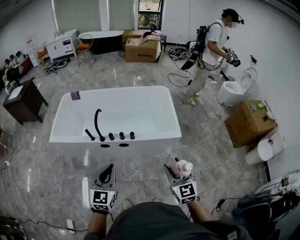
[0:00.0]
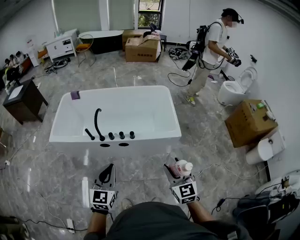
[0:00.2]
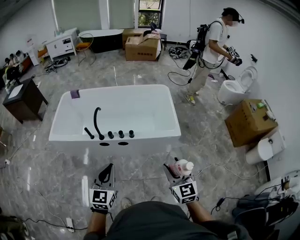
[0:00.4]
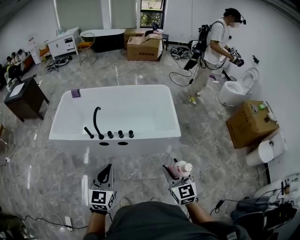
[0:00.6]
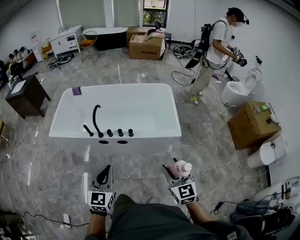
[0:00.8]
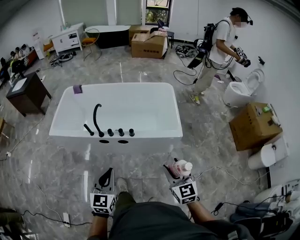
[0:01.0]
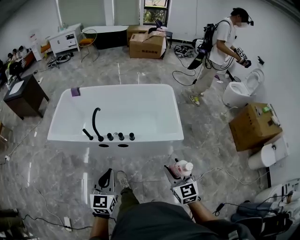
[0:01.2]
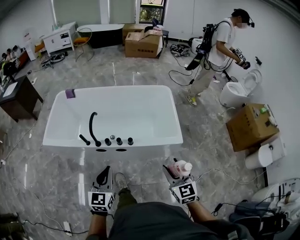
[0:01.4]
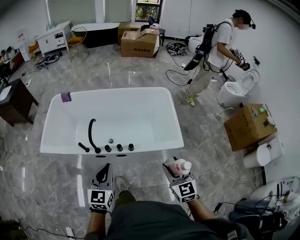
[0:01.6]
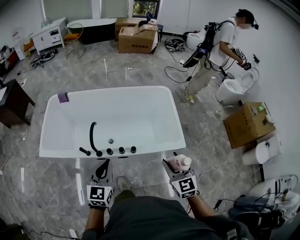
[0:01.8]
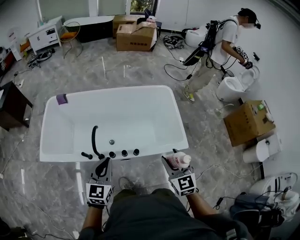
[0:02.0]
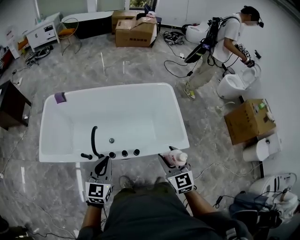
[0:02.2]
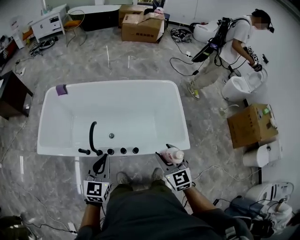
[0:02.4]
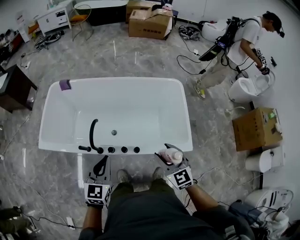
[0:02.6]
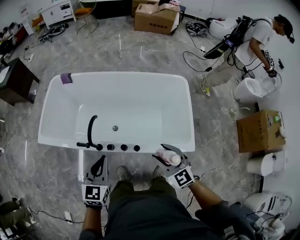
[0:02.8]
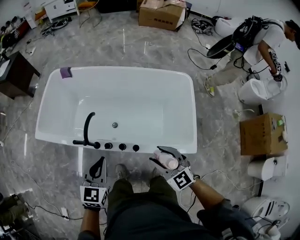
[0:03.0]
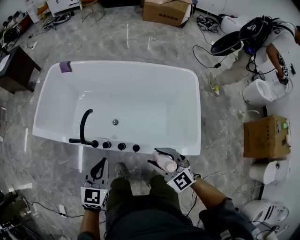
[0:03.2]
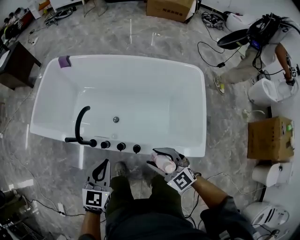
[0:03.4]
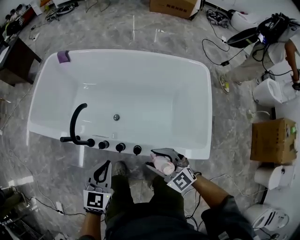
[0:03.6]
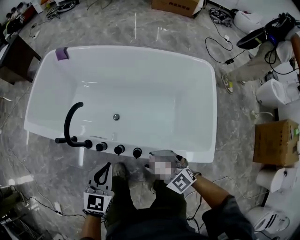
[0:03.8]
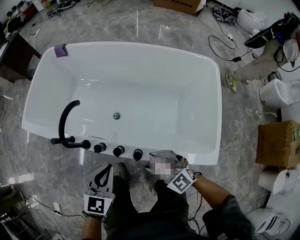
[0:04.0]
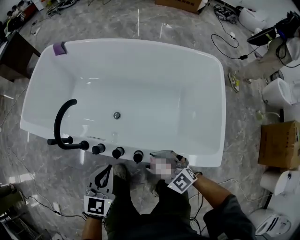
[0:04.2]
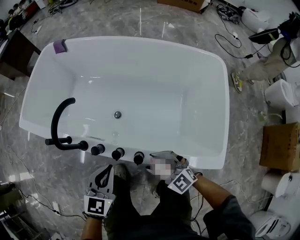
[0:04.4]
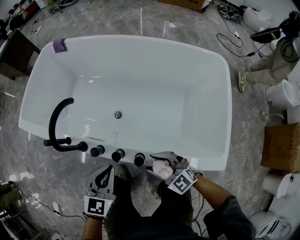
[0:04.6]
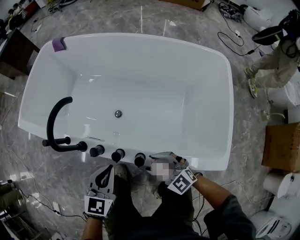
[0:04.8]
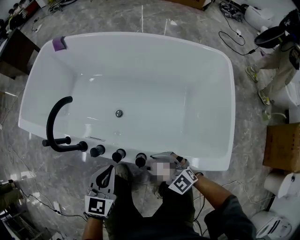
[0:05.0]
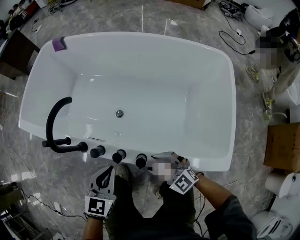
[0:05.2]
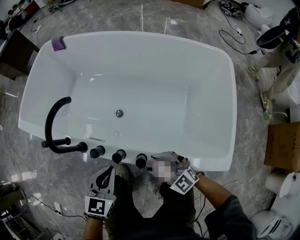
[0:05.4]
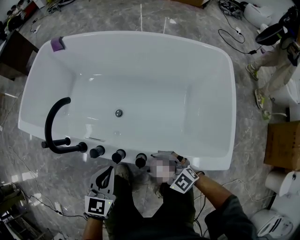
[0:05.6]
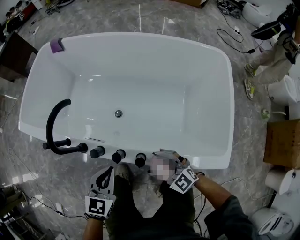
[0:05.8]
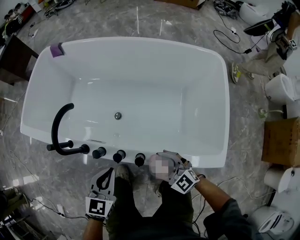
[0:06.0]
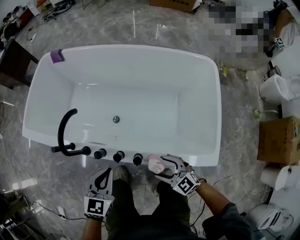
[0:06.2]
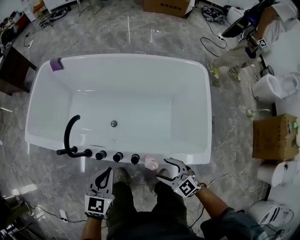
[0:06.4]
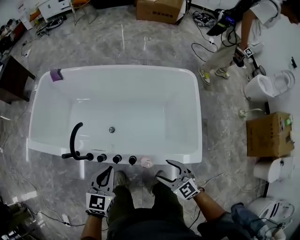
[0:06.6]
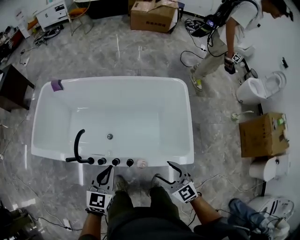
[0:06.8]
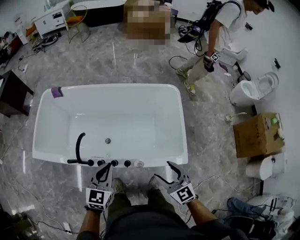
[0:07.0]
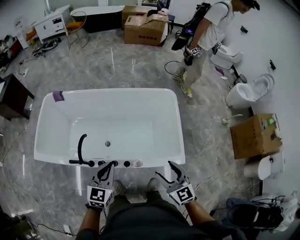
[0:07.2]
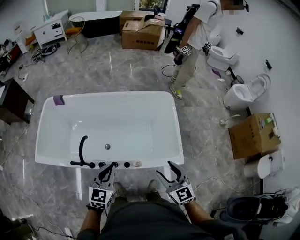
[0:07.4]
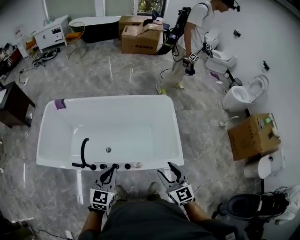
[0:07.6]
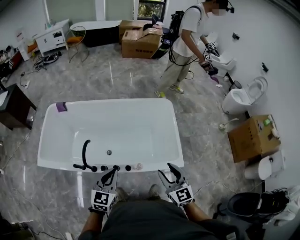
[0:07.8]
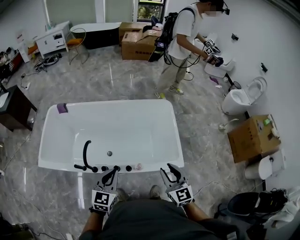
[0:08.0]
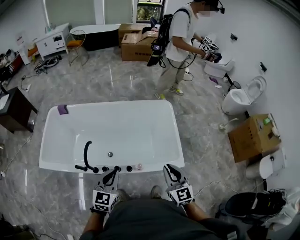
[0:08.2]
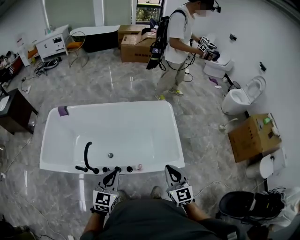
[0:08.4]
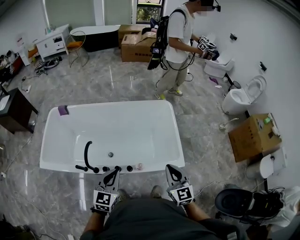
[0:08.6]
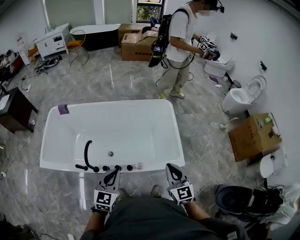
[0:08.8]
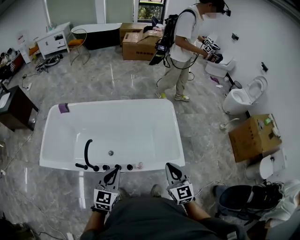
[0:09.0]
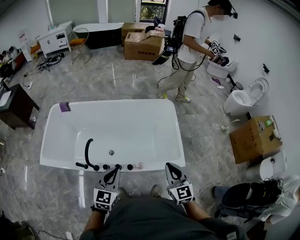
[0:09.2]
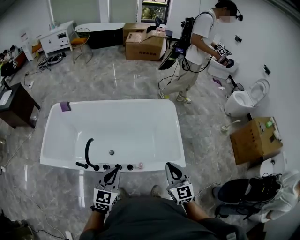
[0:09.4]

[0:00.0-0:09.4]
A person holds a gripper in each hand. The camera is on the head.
0:00.0 to 0:01.6: The grippers both shift forward by some 20 cm.
0:01.6 to 0:03.2: The right gripper ends up some 25 cm from where it was, and changes its angle by roughly 40 degrees. The left gripper shifts by some 20 cm.
0:03.2 to 0:04.8: The grippers both shift downward by approximately 25 cm.
0:04.8 to 0:06.2: The right gripper ends up about 5 cm from where it was; the left gripper is displaced upward by roughly 5 cm.
0:06.2 to 0:07.8: Both grippers travel together upward, approximately 35 cm. The right gripper turns by roughly 50 degrees, and closes up.
0:07.8 to 0:09.4: The right gripper closes.

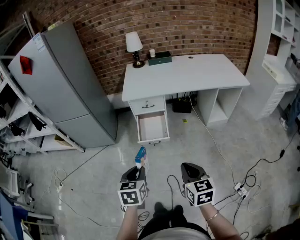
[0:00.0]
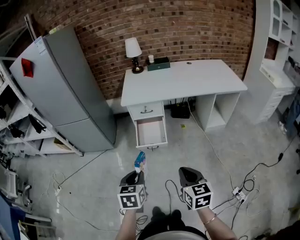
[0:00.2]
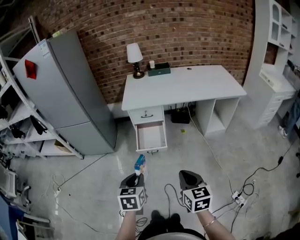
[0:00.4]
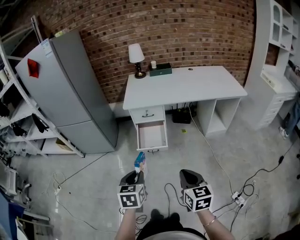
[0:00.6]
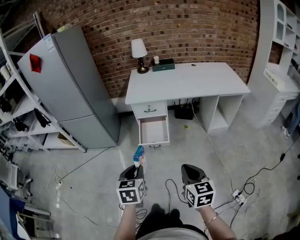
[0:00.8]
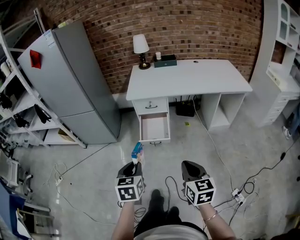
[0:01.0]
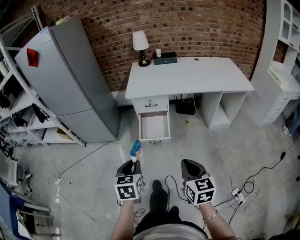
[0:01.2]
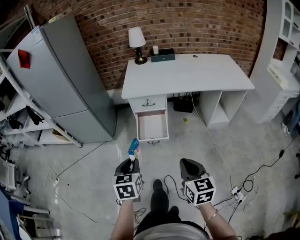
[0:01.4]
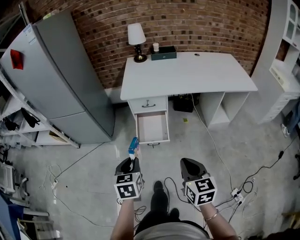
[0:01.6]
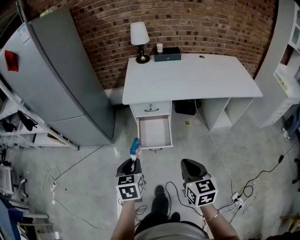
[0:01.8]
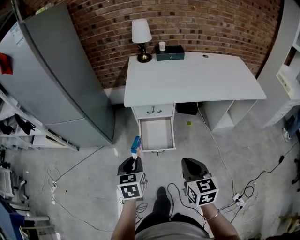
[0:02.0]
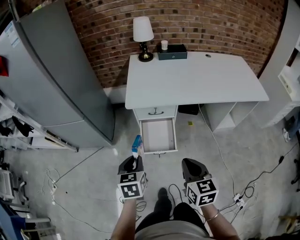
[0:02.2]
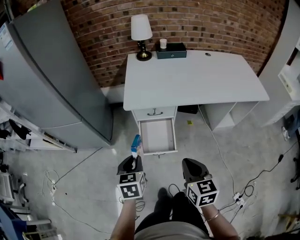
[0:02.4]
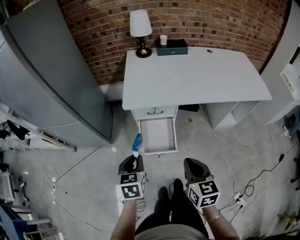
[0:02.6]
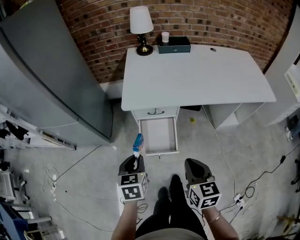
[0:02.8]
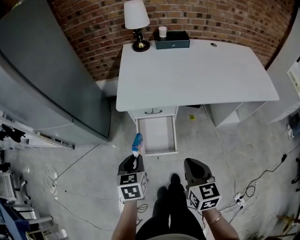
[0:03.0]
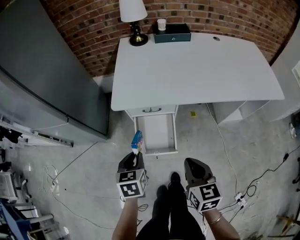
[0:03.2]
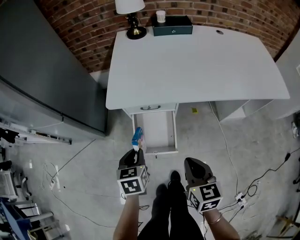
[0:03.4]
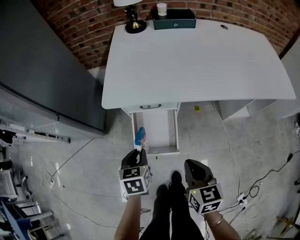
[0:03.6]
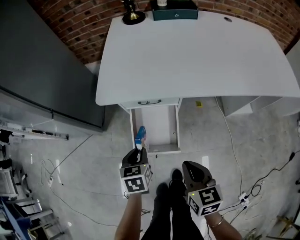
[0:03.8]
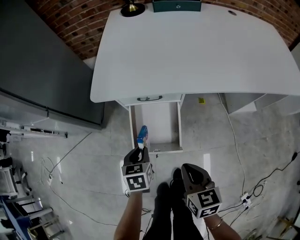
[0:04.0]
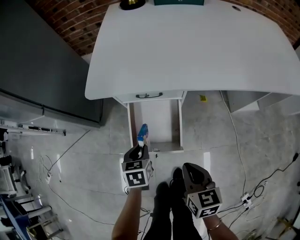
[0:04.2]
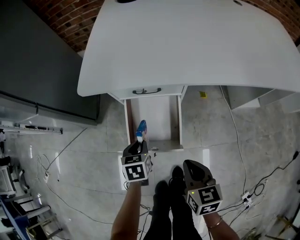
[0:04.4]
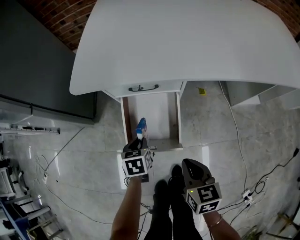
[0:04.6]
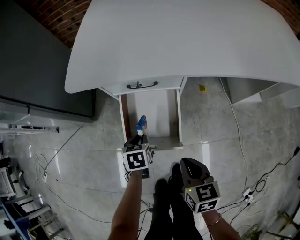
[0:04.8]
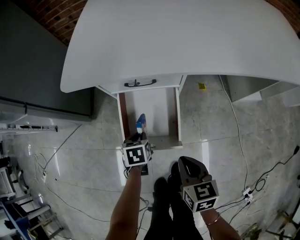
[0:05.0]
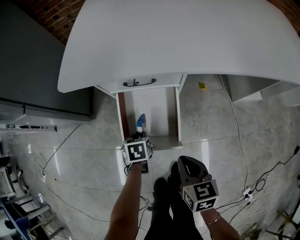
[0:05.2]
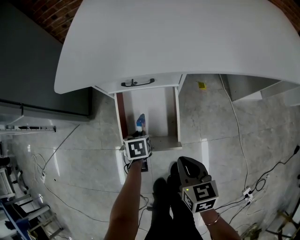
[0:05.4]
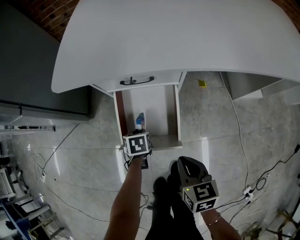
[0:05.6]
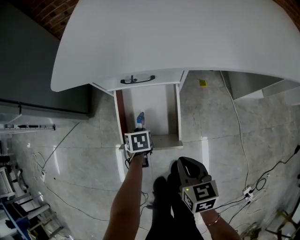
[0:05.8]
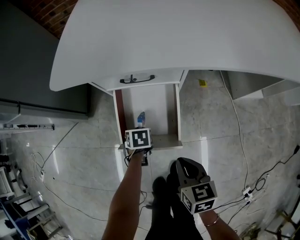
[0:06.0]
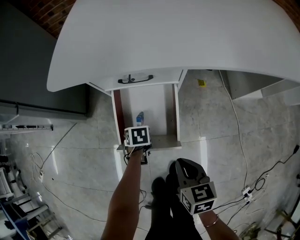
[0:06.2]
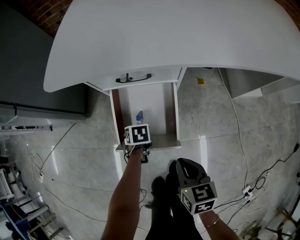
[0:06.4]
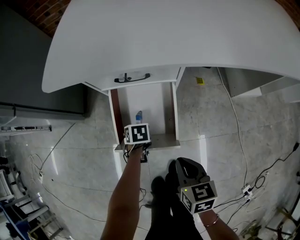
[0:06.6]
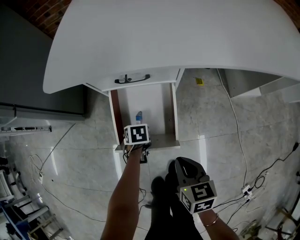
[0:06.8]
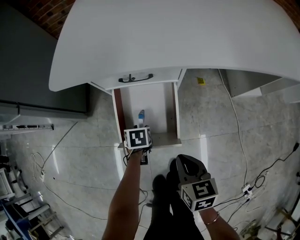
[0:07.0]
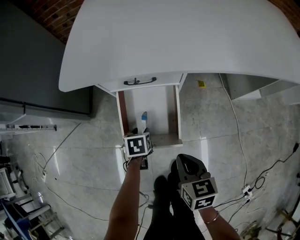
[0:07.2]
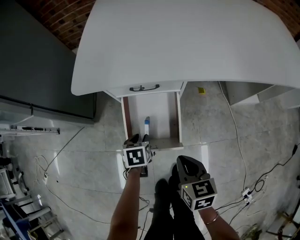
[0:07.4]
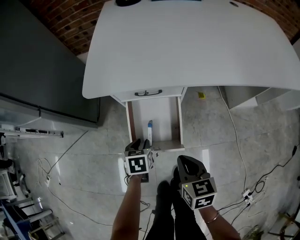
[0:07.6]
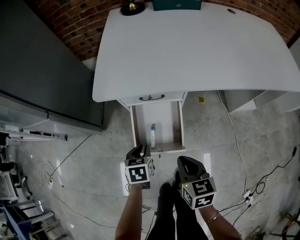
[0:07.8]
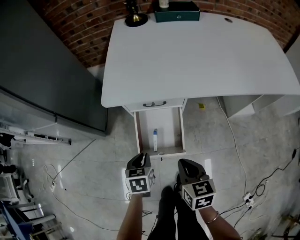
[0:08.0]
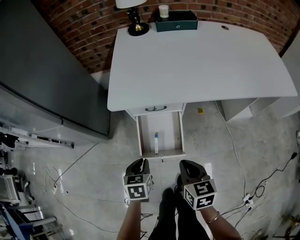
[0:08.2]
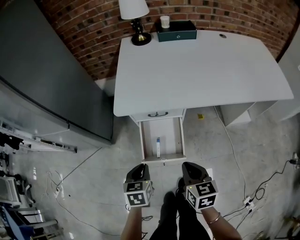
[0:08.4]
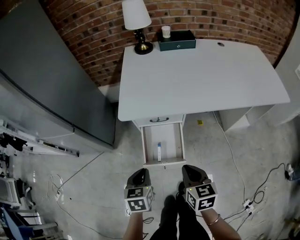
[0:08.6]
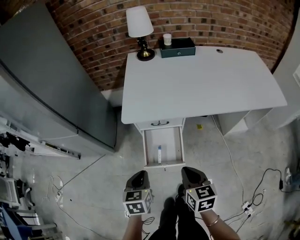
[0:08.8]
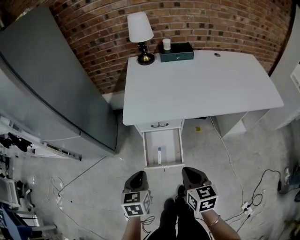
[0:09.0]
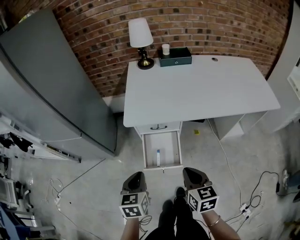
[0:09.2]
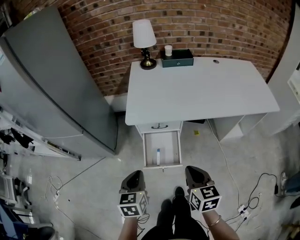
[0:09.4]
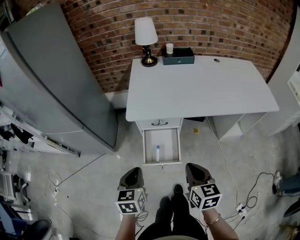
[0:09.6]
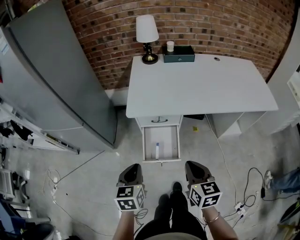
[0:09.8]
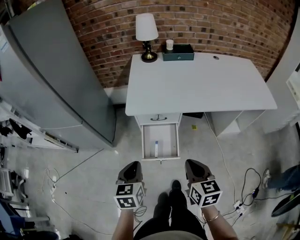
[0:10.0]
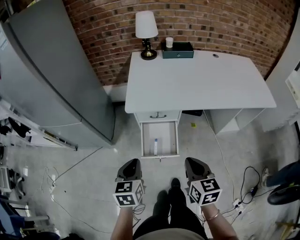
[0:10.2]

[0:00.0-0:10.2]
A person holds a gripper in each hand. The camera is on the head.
0:00.0 to 0:01.4: The left gripper goes approximately 5 cm forward.
0:01.4 to 0:03.0: The grippers both shift forward by approximately 40 cm.
0:03.0 to 0:04.4: Both grippers move downward, approximately 35 cm.
0:04.4 to 0:05.8: The left gripper goes approximately 15 cm downward. Meanwhile the right gripper travels downward by roughly 10 cm.
0:05.8 to 0:07.2: The left gripper opens.
0:07.2 to 0:08.8: The two grippers go approximately 40 cm upward. The left gripper changes its angle by some 30 degrees, and closes.
0:08.8 to 0:10.2: The grippers both shift upward and backward by roughly 10 cm.

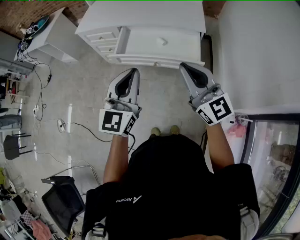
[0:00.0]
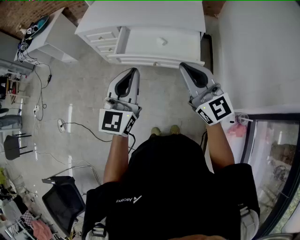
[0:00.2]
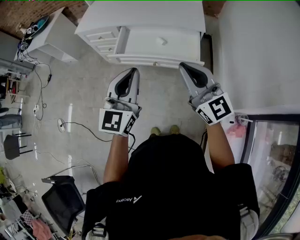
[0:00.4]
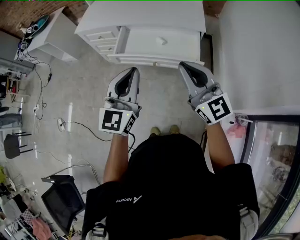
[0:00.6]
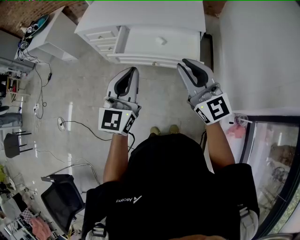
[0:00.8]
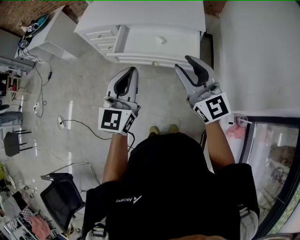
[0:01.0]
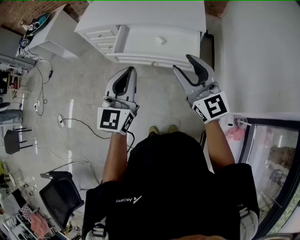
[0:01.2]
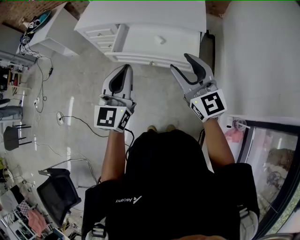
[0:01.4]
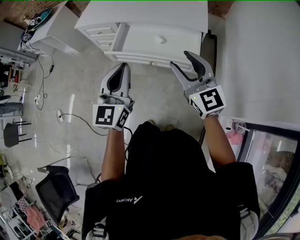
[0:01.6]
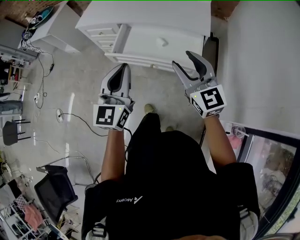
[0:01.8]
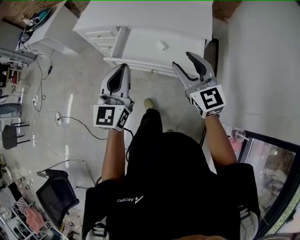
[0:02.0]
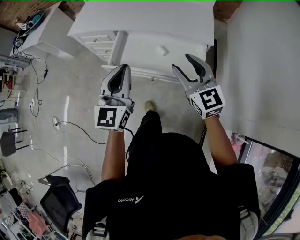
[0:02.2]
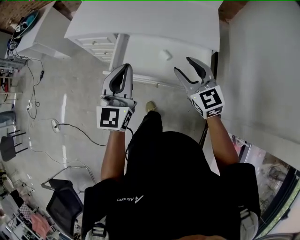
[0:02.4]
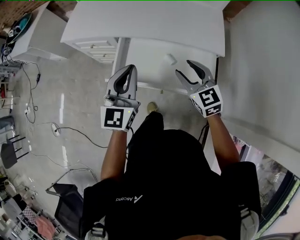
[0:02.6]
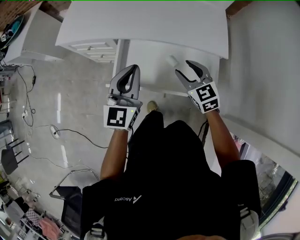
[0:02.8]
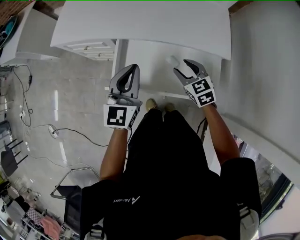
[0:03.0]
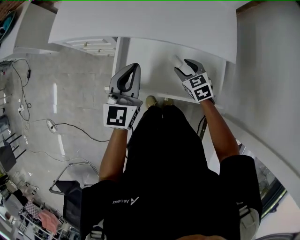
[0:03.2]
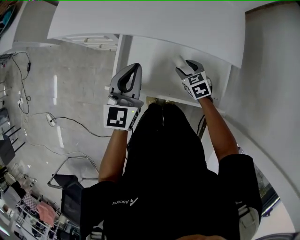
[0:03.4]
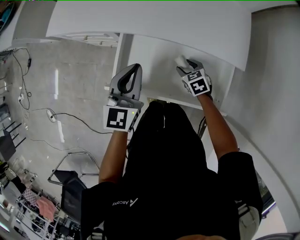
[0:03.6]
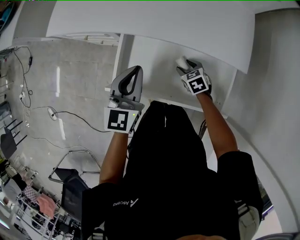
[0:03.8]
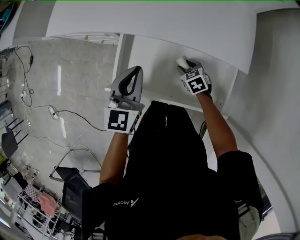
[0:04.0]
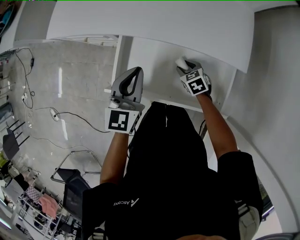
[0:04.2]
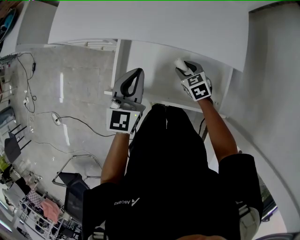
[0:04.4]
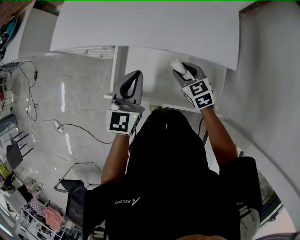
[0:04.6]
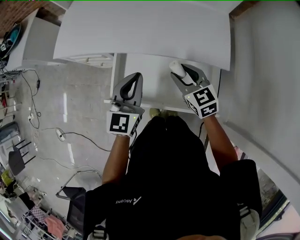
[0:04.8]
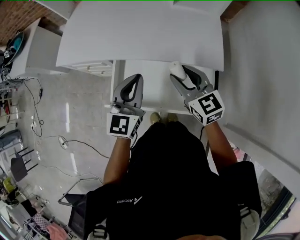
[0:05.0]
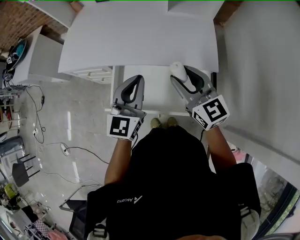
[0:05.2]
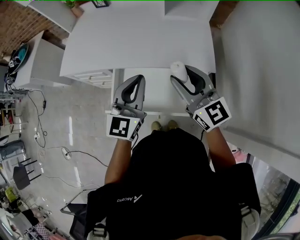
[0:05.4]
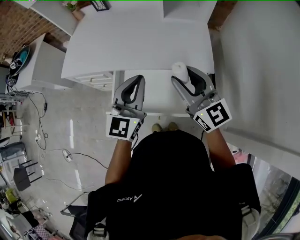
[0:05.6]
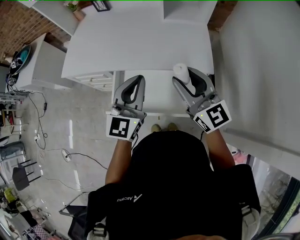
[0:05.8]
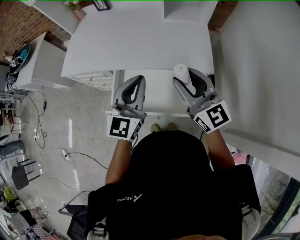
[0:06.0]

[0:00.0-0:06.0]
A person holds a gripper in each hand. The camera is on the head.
0:00.0 to 0:01.6: The right gripper goes roughly 10 cm forward and to the right, and opens its fingers; the left gripper changes place by some 5 cm.
0:01.6 to 0:03.0: The right gripper heads forward and downward, covering some 40 cm, and points its fingers approximately 40 degrees further downward. Meanwhile the left gripper shifts about 35 cm forward.
0:03.0 to 0:04.4: The right gripper travels downward and forward by about 10 cm. The left gripper travels downward by some 5 cm.
0:04.4 to 0:06.0: The right gripper heads upward, covering about 35 cm, and points its fingers about 60 degrees further upward. Meanwhile the left gripper travels upward and to the right by approximately 20 cm.
